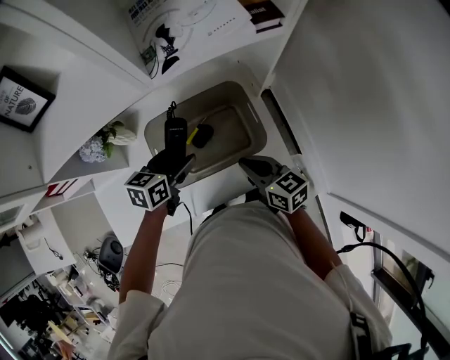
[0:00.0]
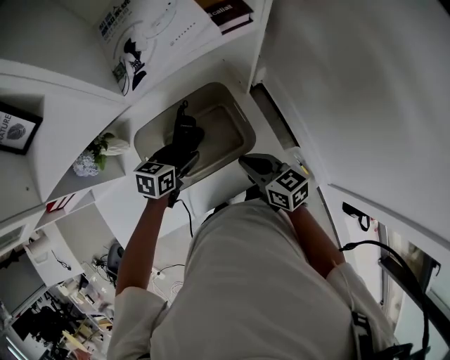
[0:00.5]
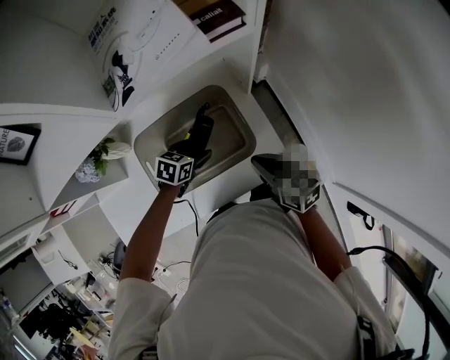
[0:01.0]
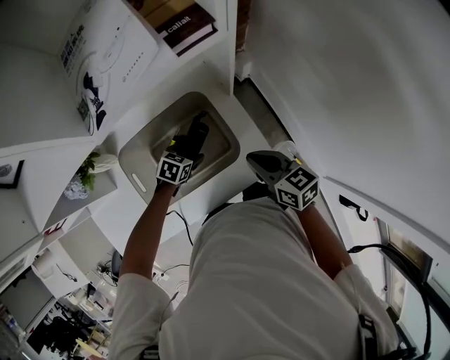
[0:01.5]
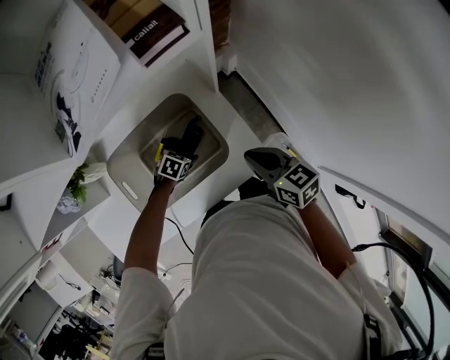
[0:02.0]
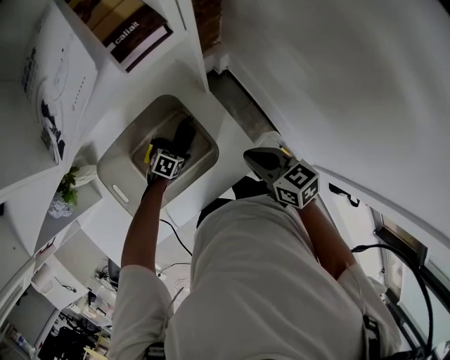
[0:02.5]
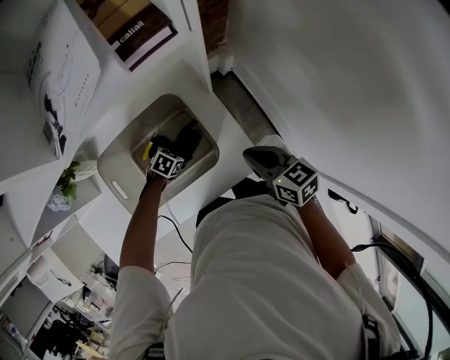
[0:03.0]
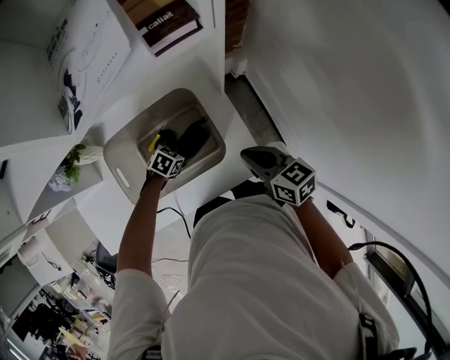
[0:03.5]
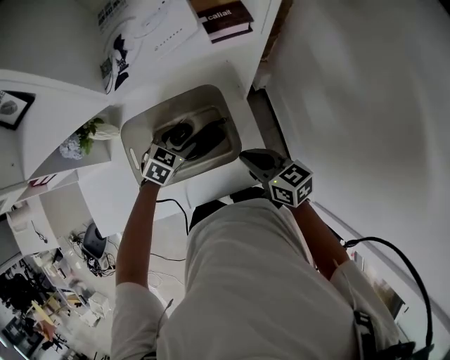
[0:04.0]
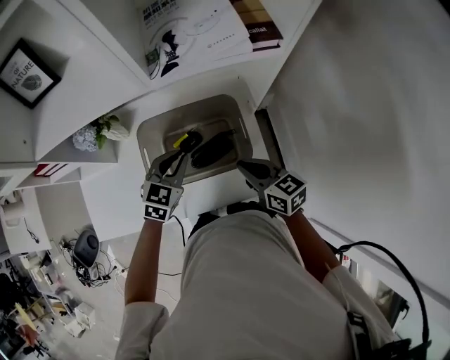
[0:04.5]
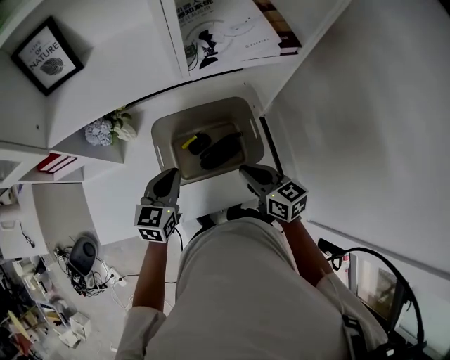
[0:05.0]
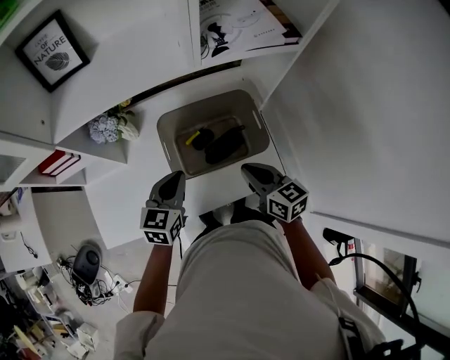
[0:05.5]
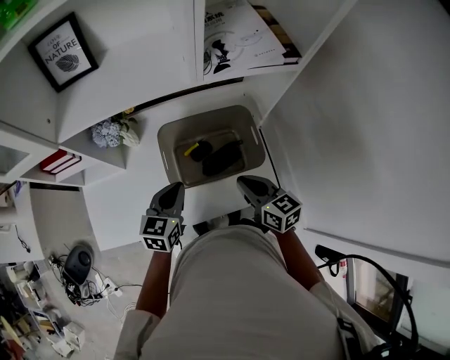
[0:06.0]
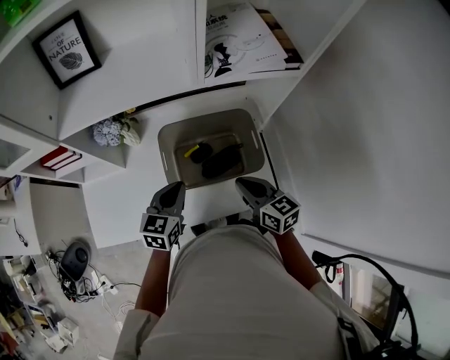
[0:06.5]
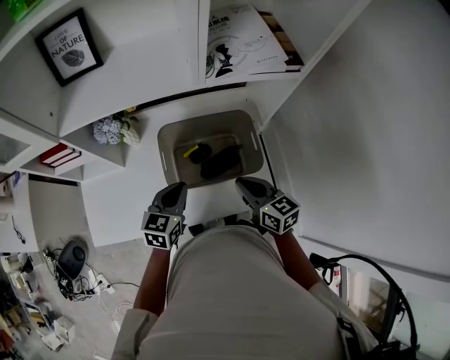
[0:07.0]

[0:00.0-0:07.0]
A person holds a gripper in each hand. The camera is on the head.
0:00.0 to 0:02.0: The right gripper is displaced to the right by about 15 cm; the left gripper travels downward and to the right by about 30 cm, and tilts its fingers roughly 30 degrees downward.
0:02.0 to 0:03.5: The grippers move only a little.
0:03.5 to 0:05.0: The right gripper changes place by approximately 15 cm, while the left gripper is displaced upward by some 30 cm, points its fingers roughly 40 degrees further upward, and closes its fingers.
0:05.0 to 0:07.0: There are only small adjustments of the grippers.

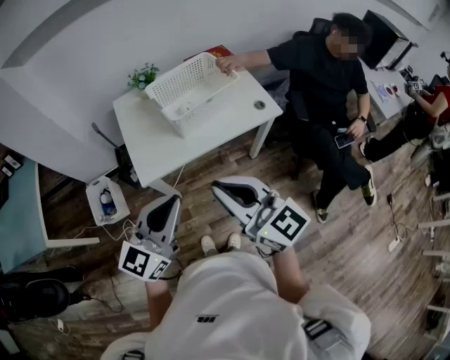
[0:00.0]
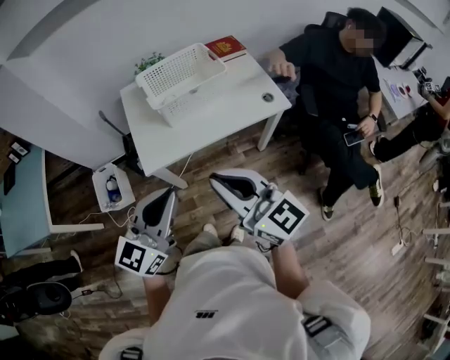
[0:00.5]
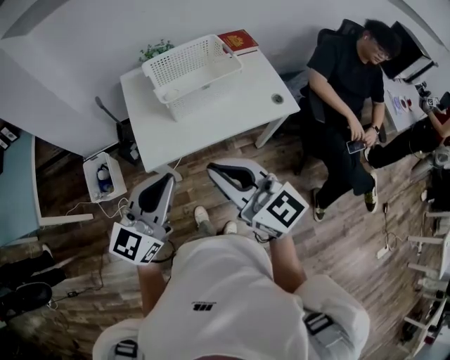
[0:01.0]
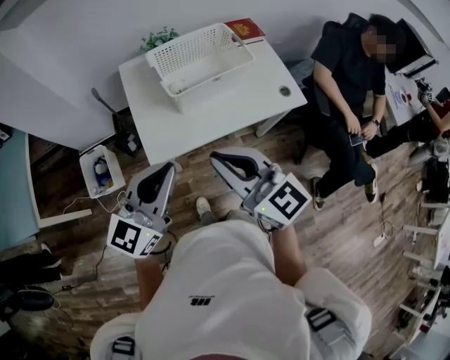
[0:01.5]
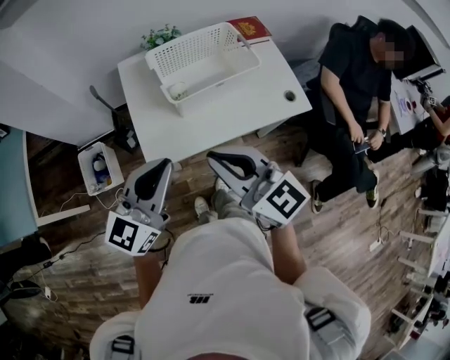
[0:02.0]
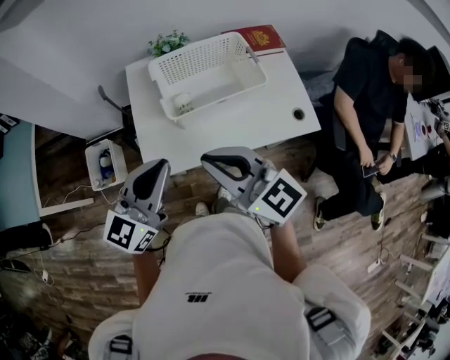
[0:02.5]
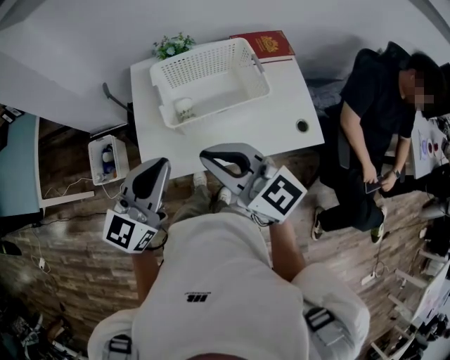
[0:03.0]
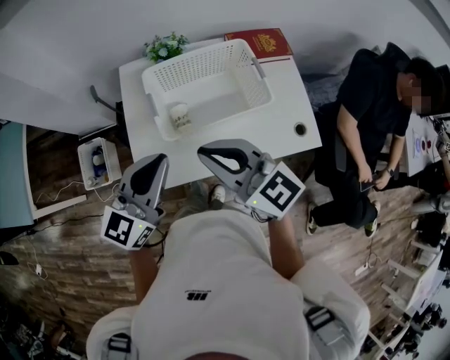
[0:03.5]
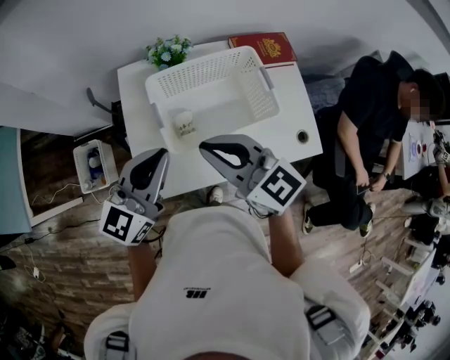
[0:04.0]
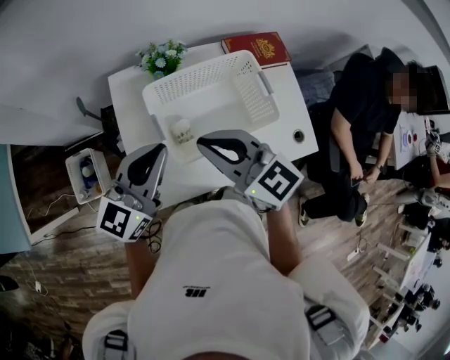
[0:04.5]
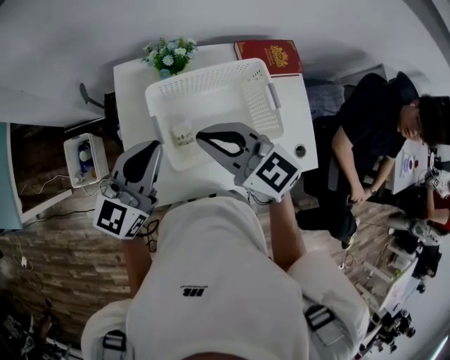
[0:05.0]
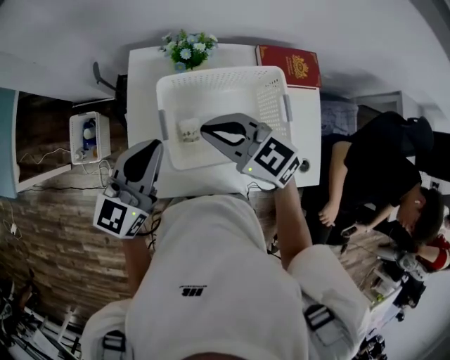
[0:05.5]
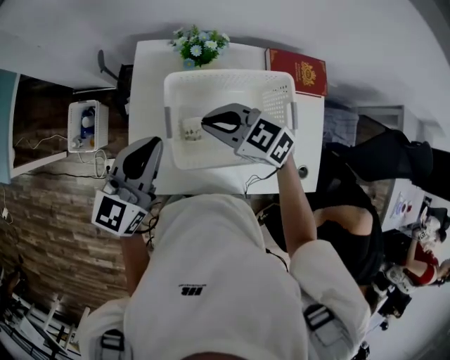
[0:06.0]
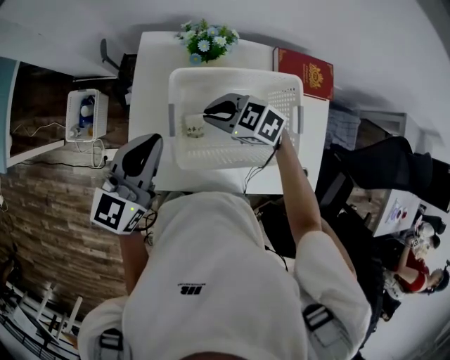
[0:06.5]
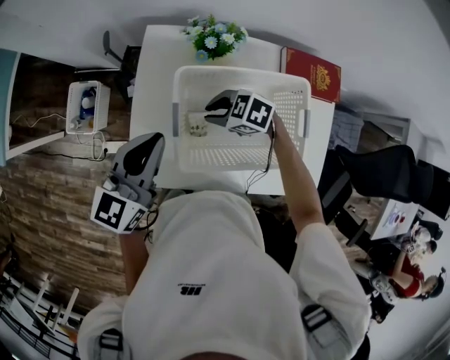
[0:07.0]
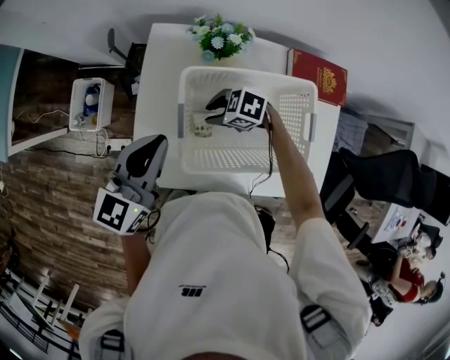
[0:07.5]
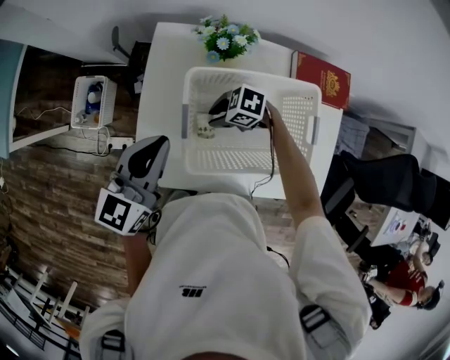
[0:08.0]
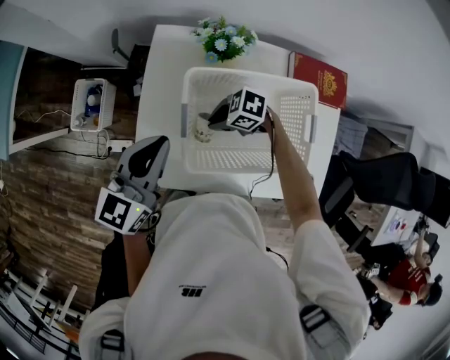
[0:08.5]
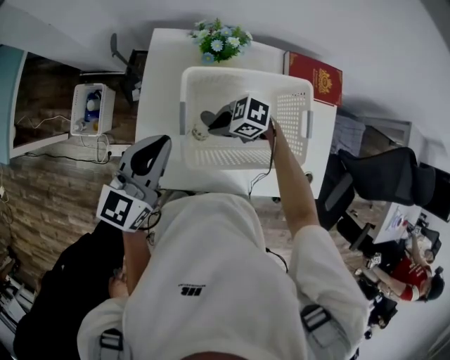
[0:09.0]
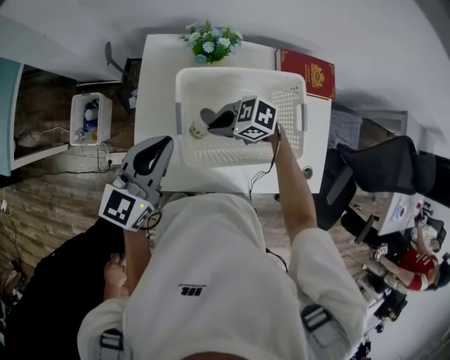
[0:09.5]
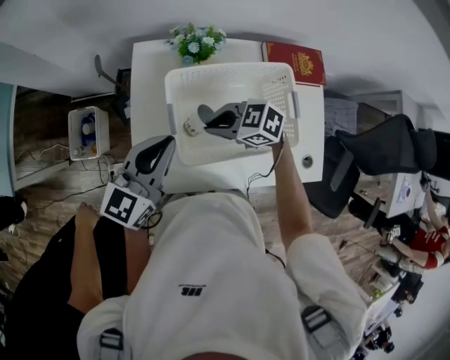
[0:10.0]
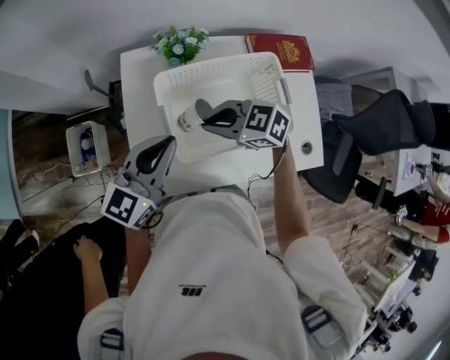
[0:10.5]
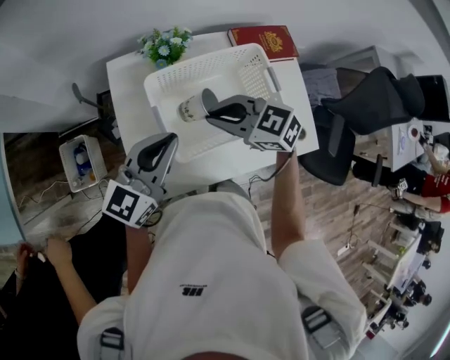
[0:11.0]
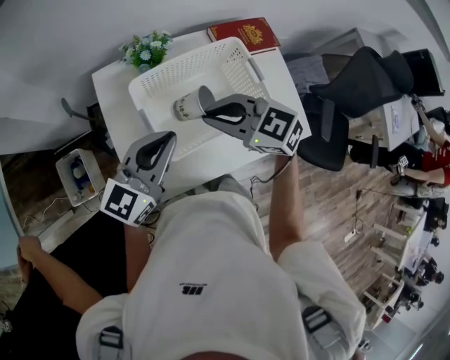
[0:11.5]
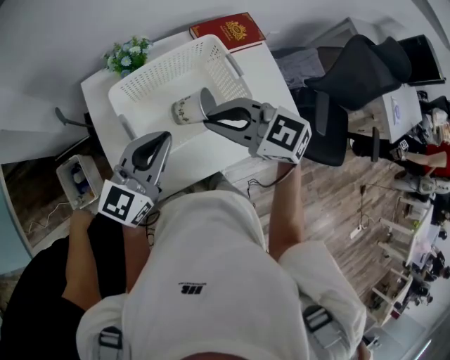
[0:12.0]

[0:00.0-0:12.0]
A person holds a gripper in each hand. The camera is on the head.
0:00.0 to 0:02.0: Both grippers move forward and to the left, some 20 cm.
0:02.0 to 0:04.0: Both grippers move forward, some 20 cm.
0:04.0 to 0:06.0: The left gripper ends up approximately 10 cm from where it was. Meanwhile the right gripper travels downward by roughly 15 cm, and rotates some 40 degrees.
0:06.0 to 0:08.0: The right gripper heads downward, covering some 20 cm, rotates roughly 40 degrees, and opens up.
0:08.0 to 0:10.0: The right gripper travels upward by about 10 cm, swivels approximately 20 degrees, and closes its fingers.
0:10.0 to 0:12.0: The left gripper moves approximately 10 cm, and turns by approximately 20 degrees; the right gripper heads upward, covering approximately 15 cm, and turns by some 40 degrees.

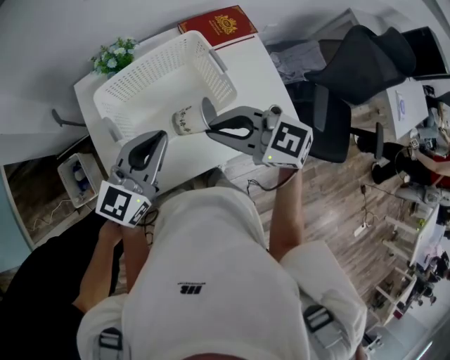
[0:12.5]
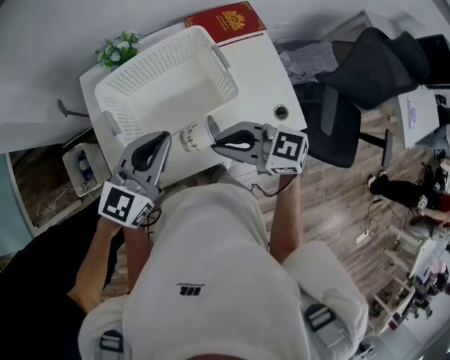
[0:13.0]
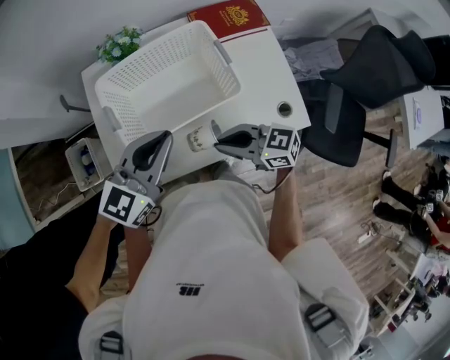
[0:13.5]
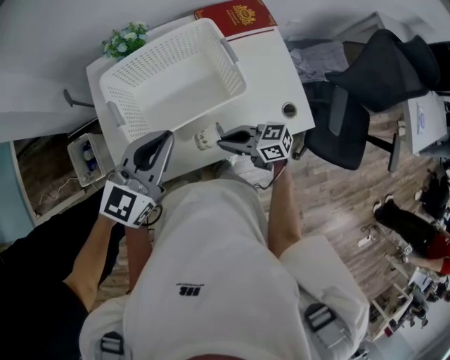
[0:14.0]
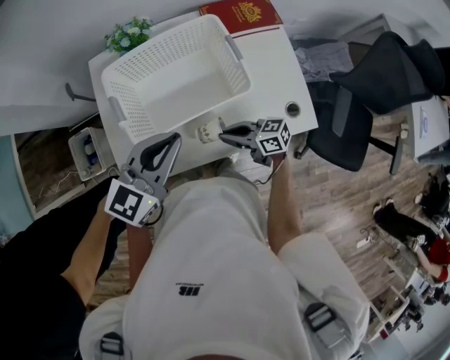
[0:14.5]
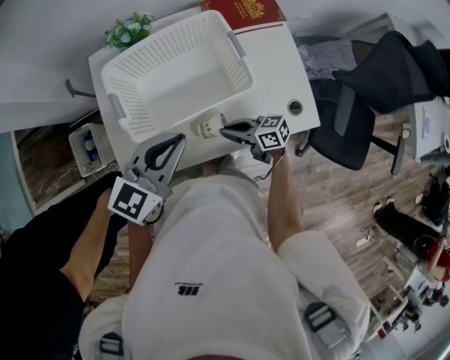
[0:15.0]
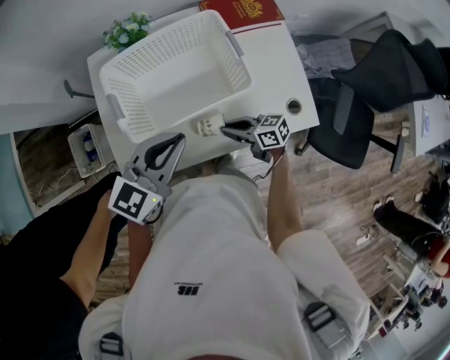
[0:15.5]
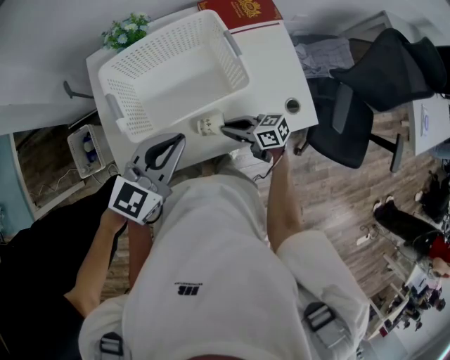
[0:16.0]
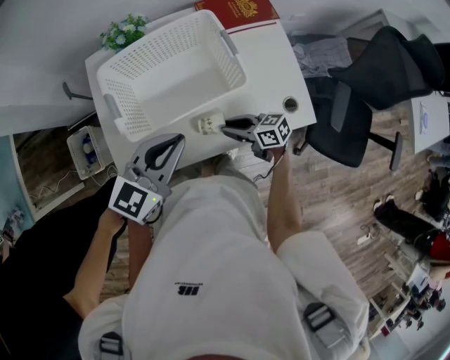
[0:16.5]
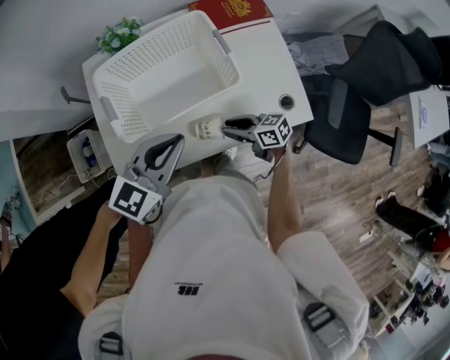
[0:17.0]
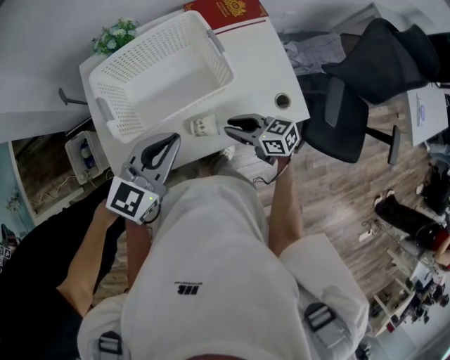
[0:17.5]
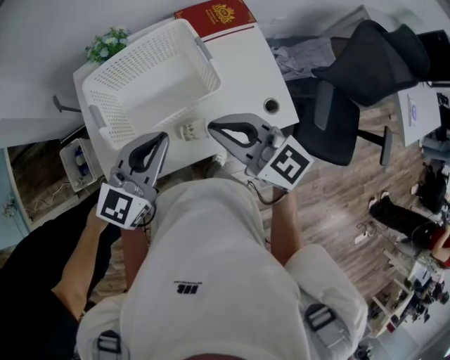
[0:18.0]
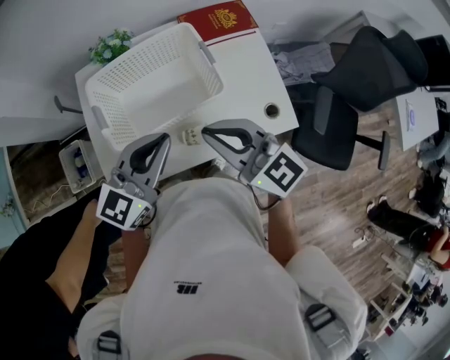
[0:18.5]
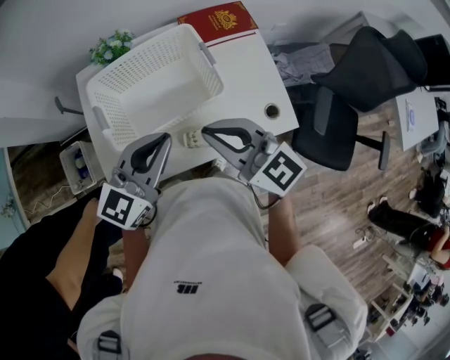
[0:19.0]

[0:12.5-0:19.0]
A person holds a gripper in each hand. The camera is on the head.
0:12.5 to 0:14.5: The right gripper moves downward, approximately 25 cm, and turns by about 40 degrees; the left gripper shifts by about 5 cm.
0:14.5 to 0:17.0: The right gripper opens.
0:17.0 to 0:19.0: The left gripper moves upward, some 5 cm, while the right gripper is displaced upward by approximately 30 cm, rotates around the line of its fingers by roughly 40 degrees, counterclockwise from behind, and closes up.

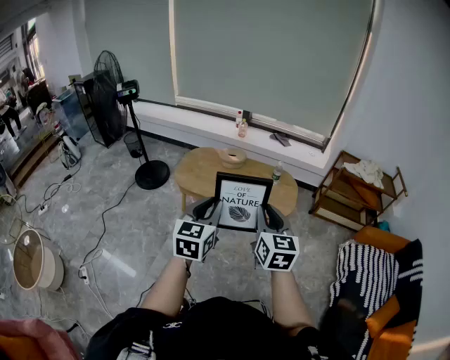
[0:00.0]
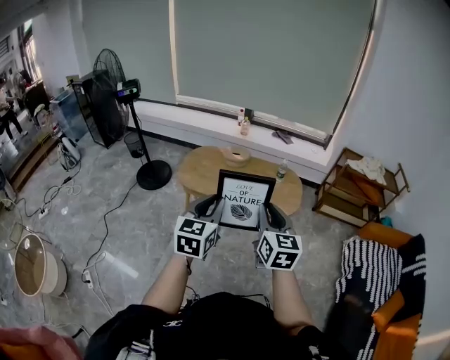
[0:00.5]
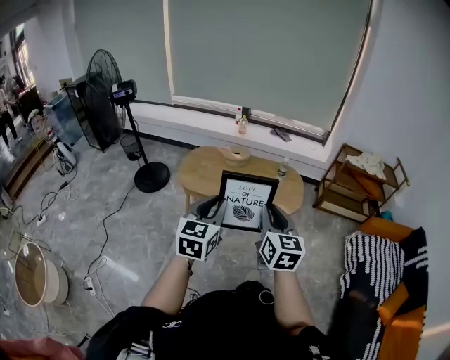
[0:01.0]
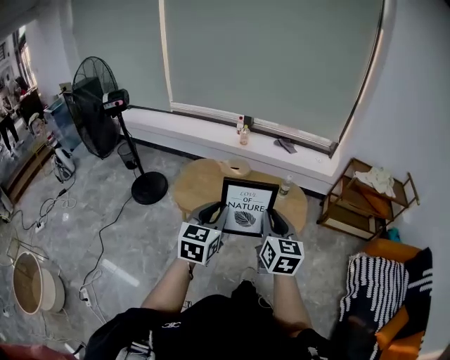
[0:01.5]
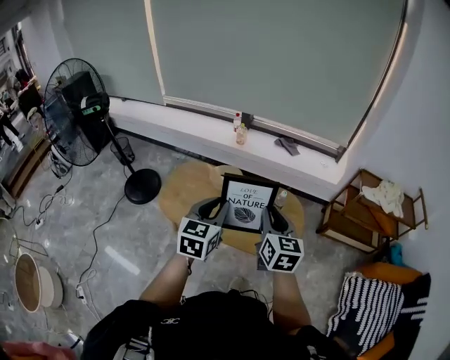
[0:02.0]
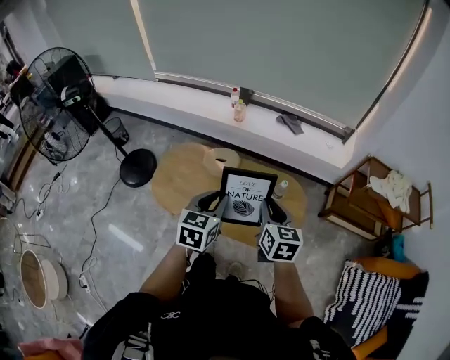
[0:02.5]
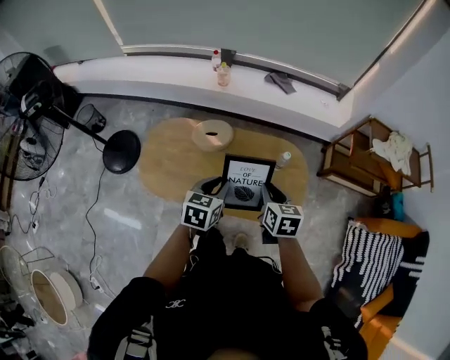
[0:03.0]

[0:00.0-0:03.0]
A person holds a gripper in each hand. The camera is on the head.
0:00.0 to 0:01.5: The two grippers go some 20 cm forward.
0:01.5 to 0:03.0: Both grippers are carried forward, some 40 cm. The two grippers go about 20 cm downward. The left gripper turns by approximately 30 degrees; the right gripper swivels approximately 30 degrees.
